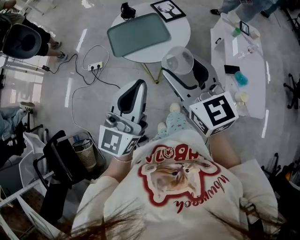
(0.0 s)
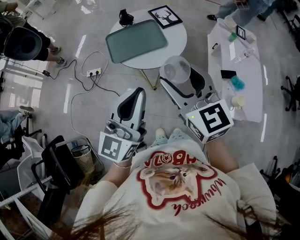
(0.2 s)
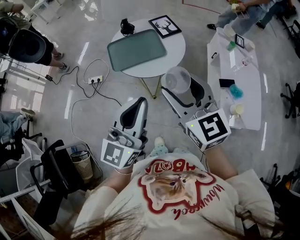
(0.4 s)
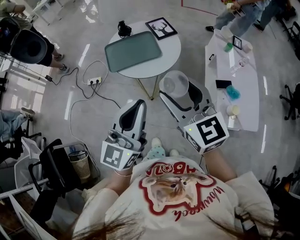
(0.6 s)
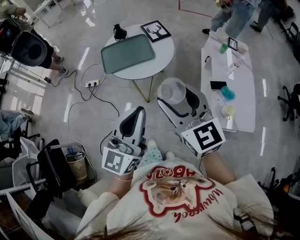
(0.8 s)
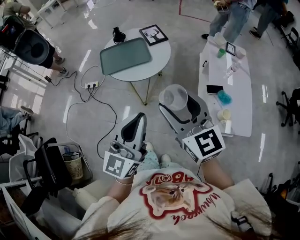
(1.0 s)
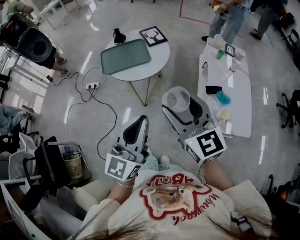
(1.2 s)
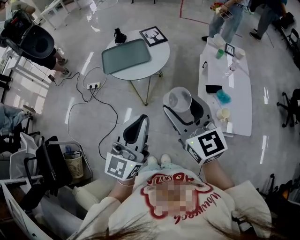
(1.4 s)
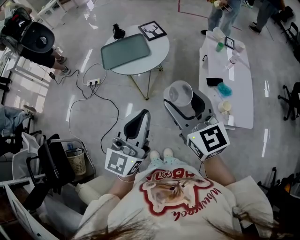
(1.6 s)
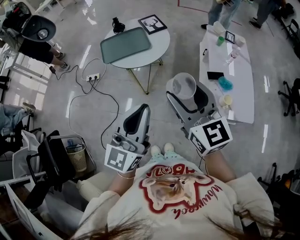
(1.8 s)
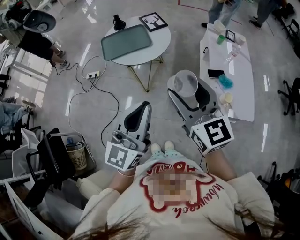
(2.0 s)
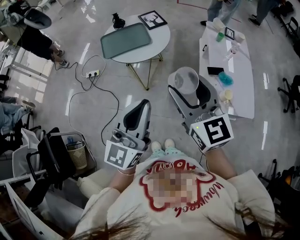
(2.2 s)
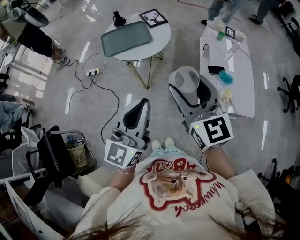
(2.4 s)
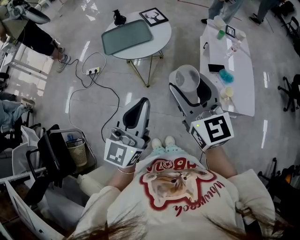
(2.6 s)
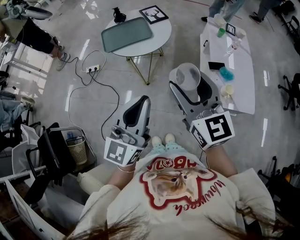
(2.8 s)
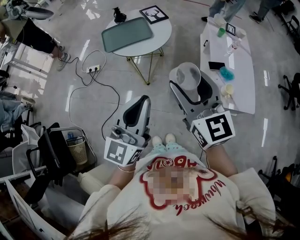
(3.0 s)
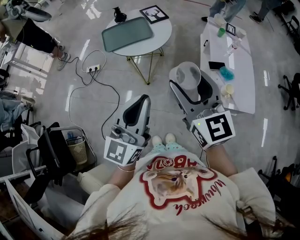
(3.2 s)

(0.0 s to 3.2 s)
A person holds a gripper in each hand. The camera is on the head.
0.0 s - 1.6 s: The two grippers go approximately 20 cm backward and to the right.
1.6 s - 3.2 s: The grippers move only a little.

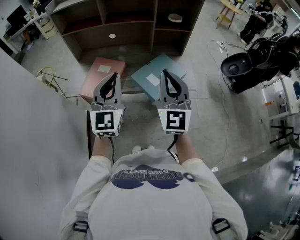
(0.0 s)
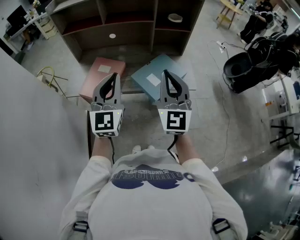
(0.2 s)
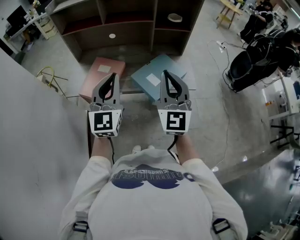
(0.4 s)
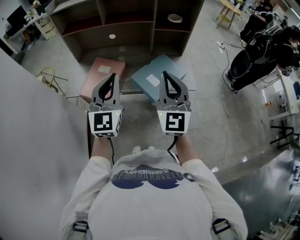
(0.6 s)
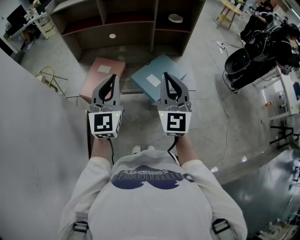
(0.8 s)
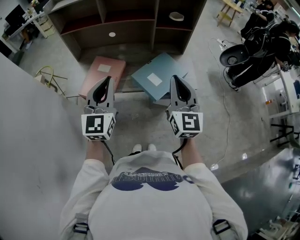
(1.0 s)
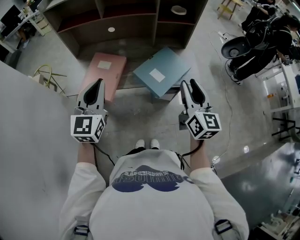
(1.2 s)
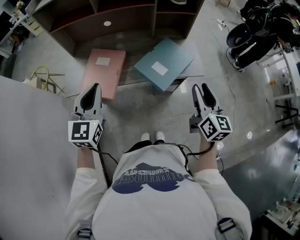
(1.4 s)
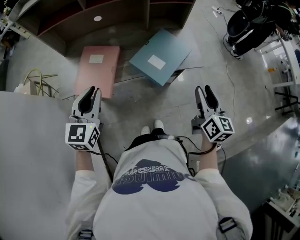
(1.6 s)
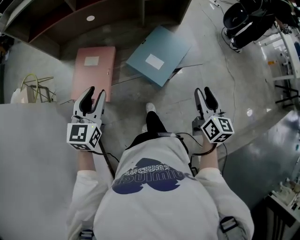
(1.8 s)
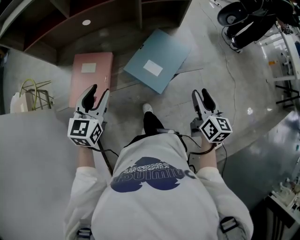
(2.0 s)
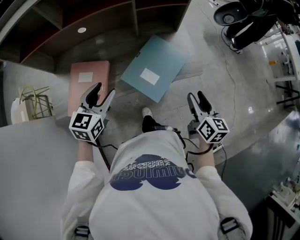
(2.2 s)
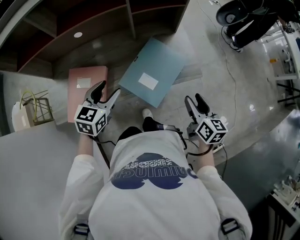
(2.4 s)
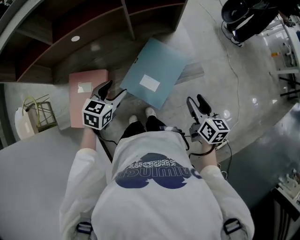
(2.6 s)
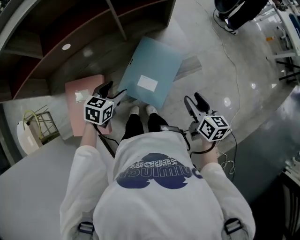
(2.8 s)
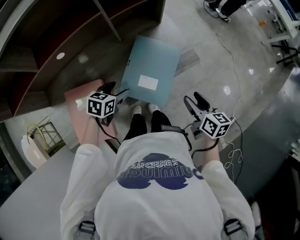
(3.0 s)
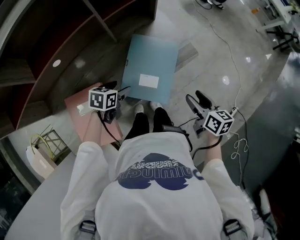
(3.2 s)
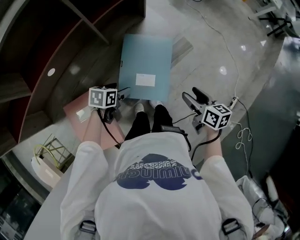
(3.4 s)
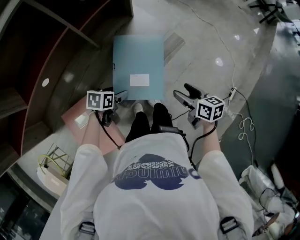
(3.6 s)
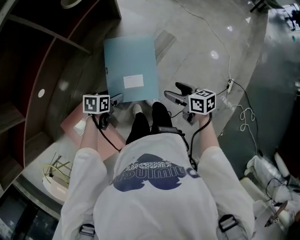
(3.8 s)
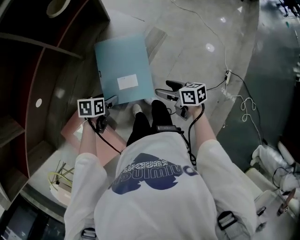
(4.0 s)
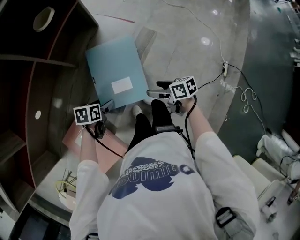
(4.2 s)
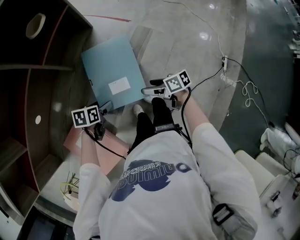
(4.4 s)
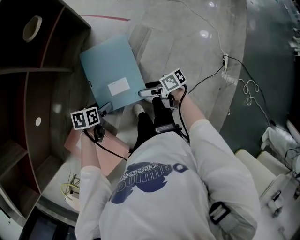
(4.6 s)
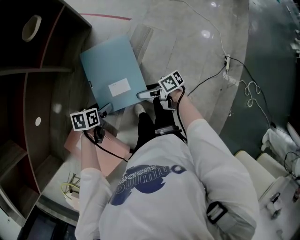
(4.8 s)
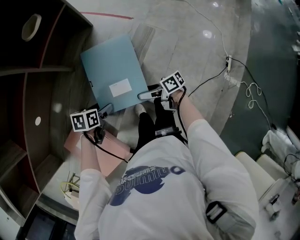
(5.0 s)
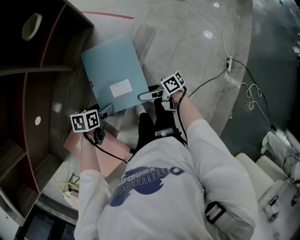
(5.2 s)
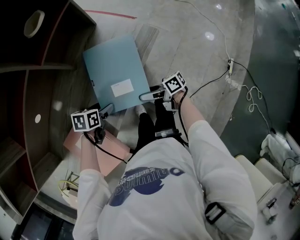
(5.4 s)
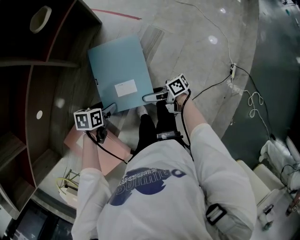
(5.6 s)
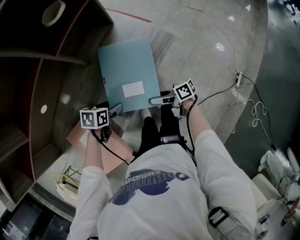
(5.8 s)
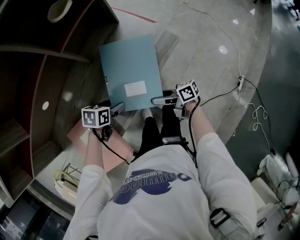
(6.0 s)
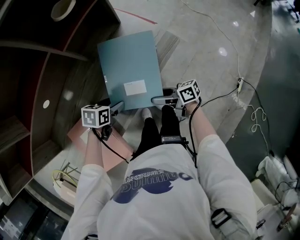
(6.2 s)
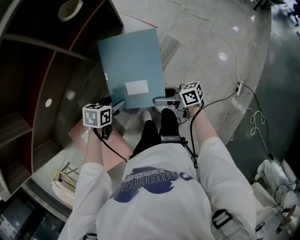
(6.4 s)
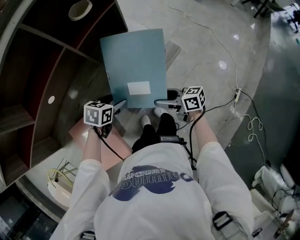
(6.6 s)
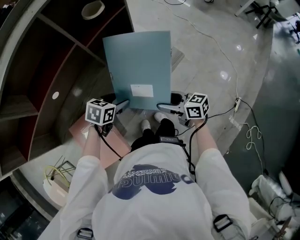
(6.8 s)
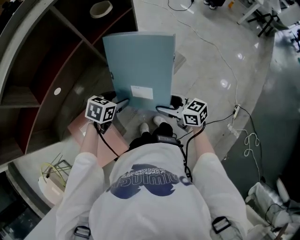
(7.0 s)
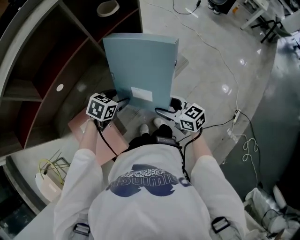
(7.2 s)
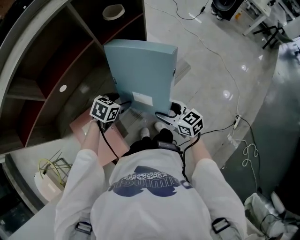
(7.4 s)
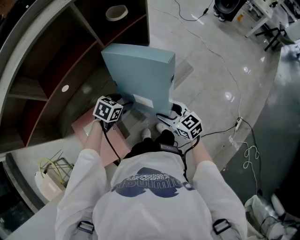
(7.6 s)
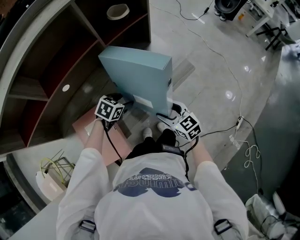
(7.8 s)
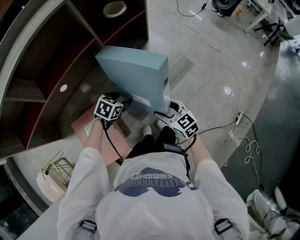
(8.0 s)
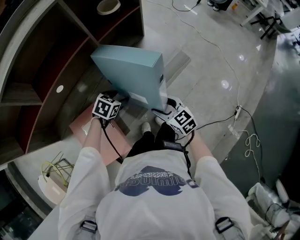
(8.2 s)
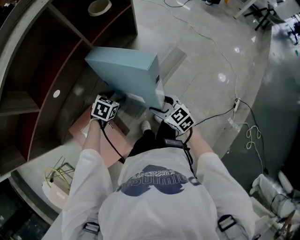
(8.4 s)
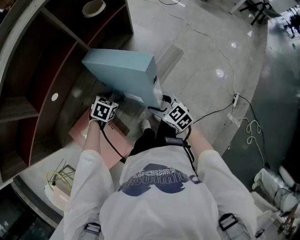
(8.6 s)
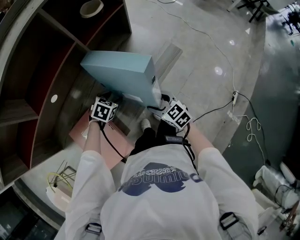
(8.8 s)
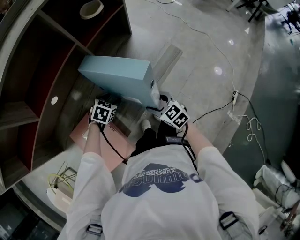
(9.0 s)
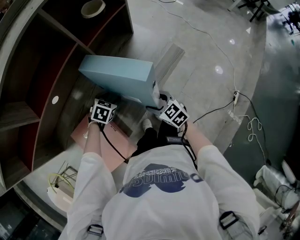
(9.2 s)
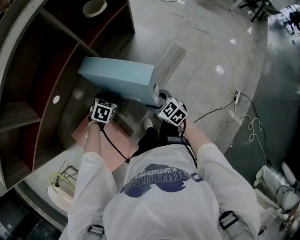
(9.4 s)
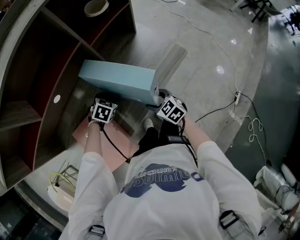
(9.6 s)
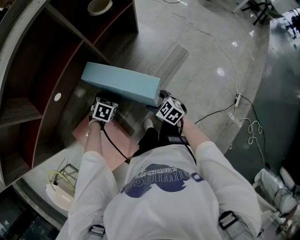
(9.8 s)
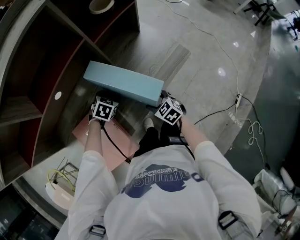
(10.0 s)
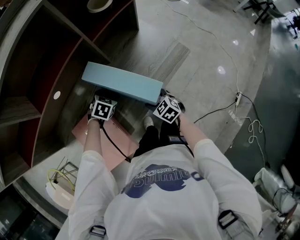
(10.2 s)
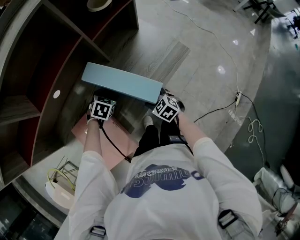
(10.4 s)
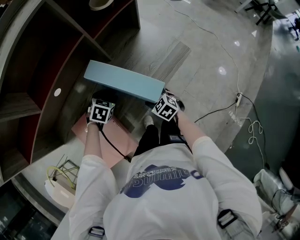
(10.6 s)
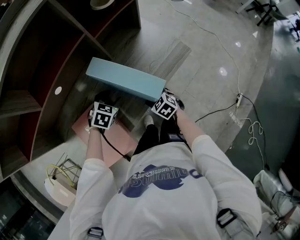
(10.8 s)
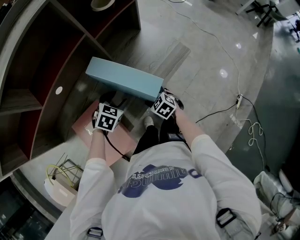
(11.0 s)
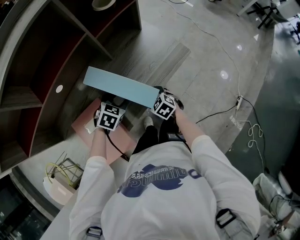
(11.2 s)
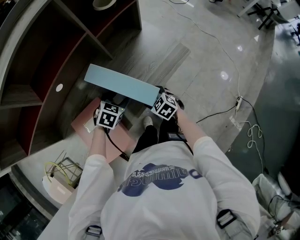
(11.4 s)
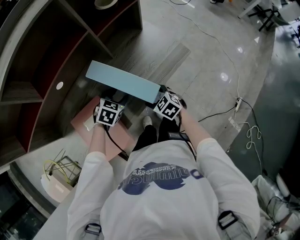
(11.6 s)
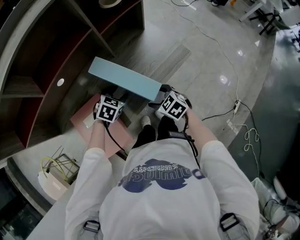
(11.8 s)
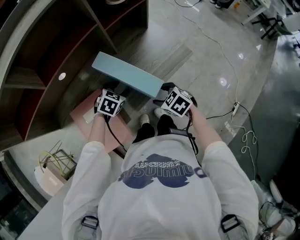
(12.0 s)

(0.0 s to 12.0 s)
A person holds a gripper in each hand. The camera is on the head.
0.0 s - 1.6 s: The left gripper heads downward and to the left, covering about 15 cm, and rotates some 30 degrees. The right gripper moves downward and to the right, about 20 cm, rotates about 50 degrees, and opens up.
1.6 s - 3.0 s: The right gripper is displaced downward by about 15 cm, and turns by roughly 20 degrees. The left gripper changes place by roughly 35 cm, tilts its fingers some 30 degrees downward, and opens its fingers.
3.0 s - 4.4 s: The left gripper is displaced downward by about 10 cm, and rotates some 20 degrees. Meanwhile the right gripper heads downward, covering some 15 cm, changes its angle by some 30 degrees, and opens up.
4.4 s - 6.0 s: The right gripper swivels roughly 20 degrees.
6.0 s - 7.6 s: The left gripper shifts some 5 cm upward, and turns by some 20 degrees; the right gripper shifts about 10 cm upward, and rotates around the line of its fingers by approximately 50 degrees, counterclockwise from behind.
7.6 s - 9.0 s: The right gripper goes roughly 5 cm downward. The left gripper changes place by some 5 cm.
9.0 s - 10.4 s: The right gripper travels downward by some 5 cm.
10.4 s - 12.0 s: The right gripper goes some 10 cm upward, while the left gripper moves upward, approximately 5 cm.

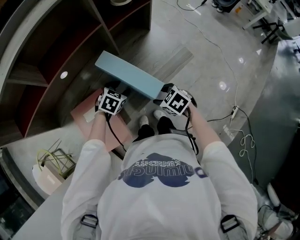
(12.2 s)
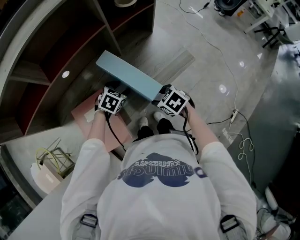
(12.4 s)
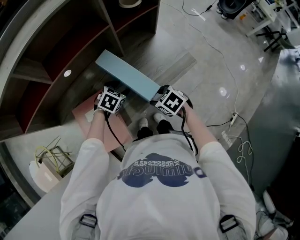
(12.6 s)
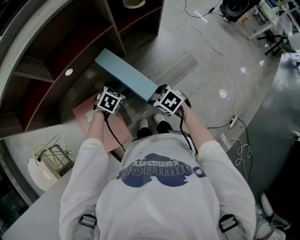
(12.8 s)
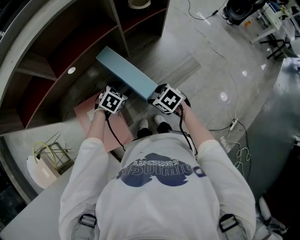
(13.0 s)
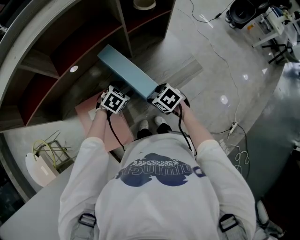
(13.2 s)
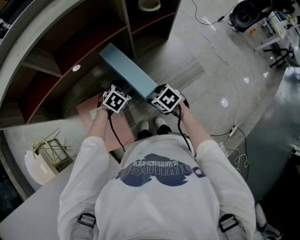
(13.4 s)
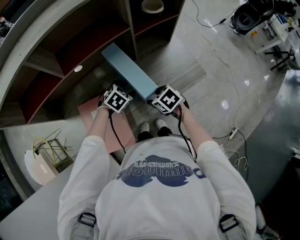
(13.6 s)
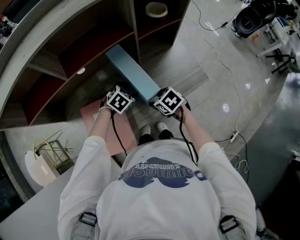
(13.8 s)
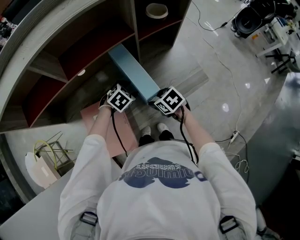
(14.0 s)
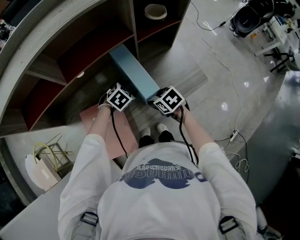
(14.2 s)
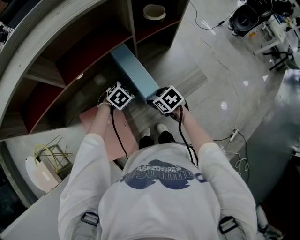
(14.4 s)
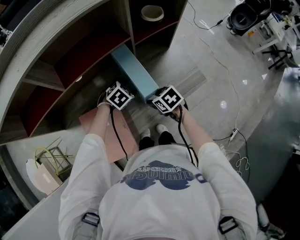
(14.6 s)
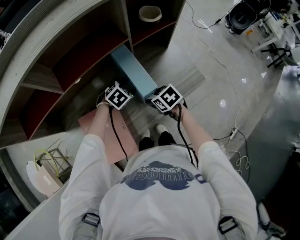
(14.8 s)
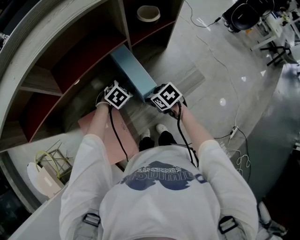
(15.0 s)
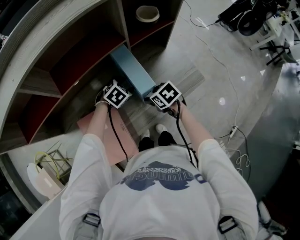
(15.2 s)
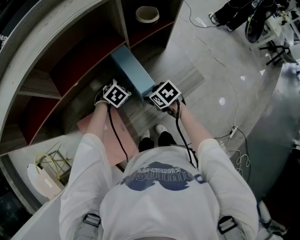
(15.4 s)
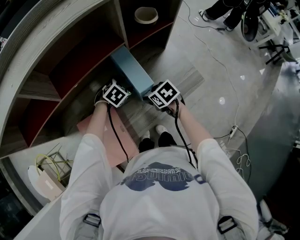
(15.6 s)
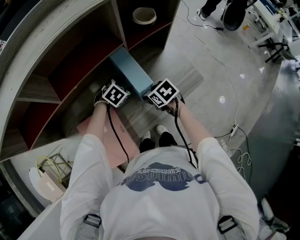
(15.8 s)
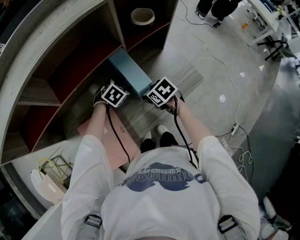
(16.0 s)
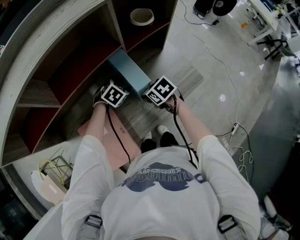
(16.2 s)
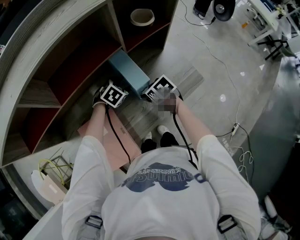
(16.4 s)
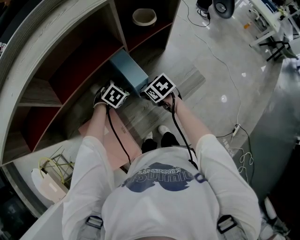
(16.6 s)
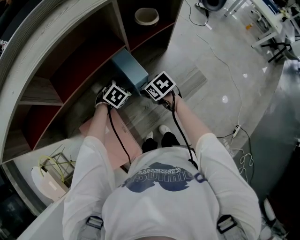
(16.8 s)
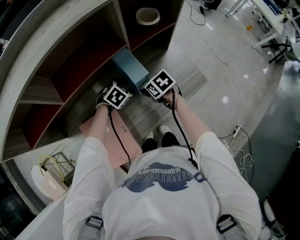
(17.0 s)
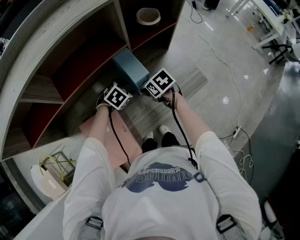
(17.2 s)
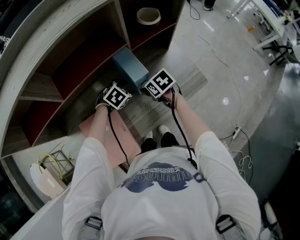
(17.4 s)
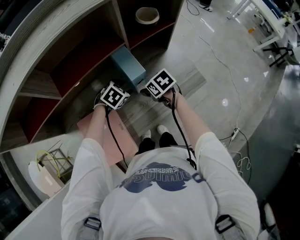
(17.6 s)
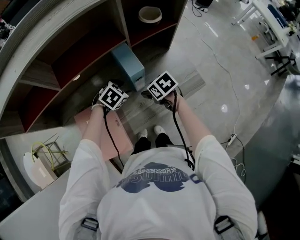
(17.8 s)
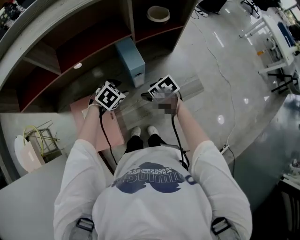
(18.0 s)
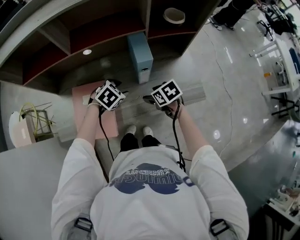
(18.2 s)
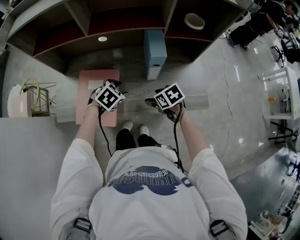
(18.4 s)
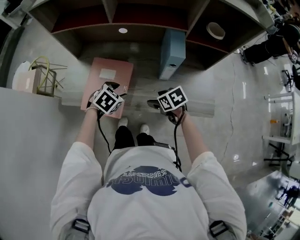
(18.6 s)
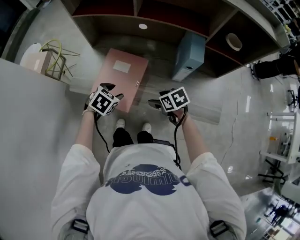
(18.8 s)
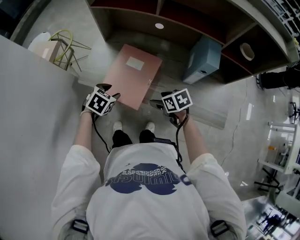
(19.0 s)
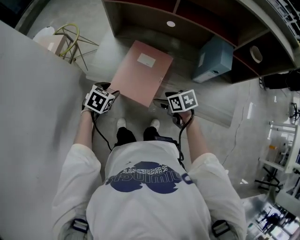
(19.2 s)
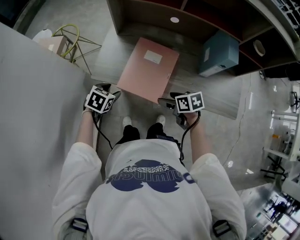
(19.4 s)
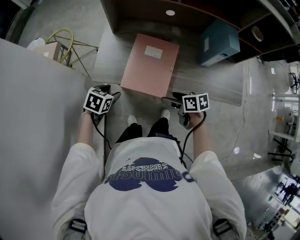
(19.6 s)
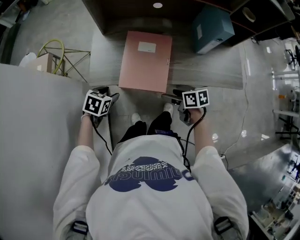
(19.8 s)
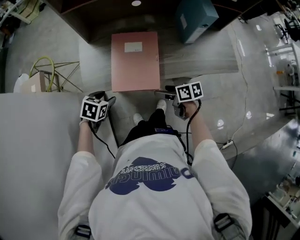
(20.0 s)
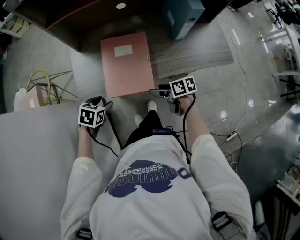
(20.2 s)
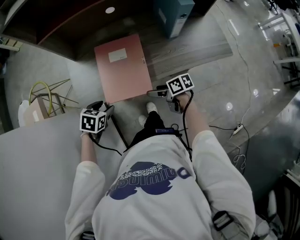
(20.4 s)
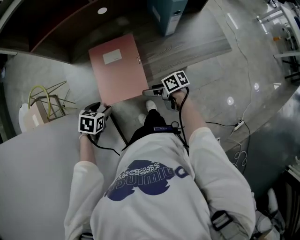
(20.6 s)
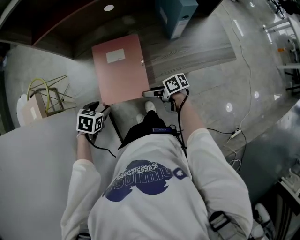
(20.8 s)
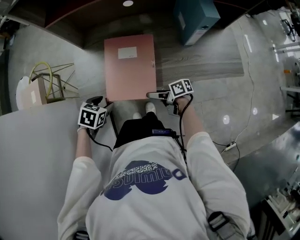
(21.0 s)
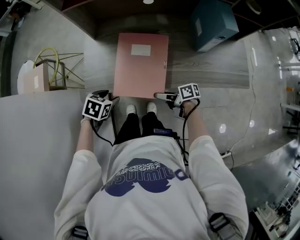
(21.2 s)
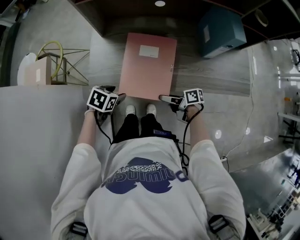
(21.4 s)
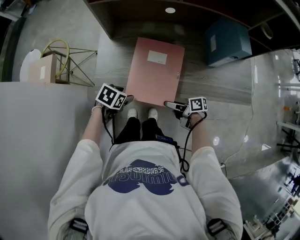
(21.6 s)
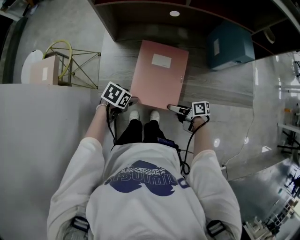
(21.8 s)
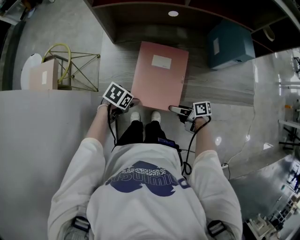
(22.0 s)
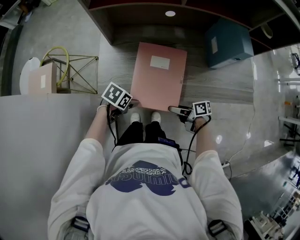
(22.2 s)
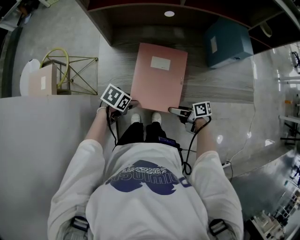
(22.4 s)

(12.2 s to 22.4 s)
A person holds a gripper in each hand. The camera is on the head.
12.2 s - 13.6 s: The right gripper is displaced forward and to the left by some 10 cm.
13.6 s - 15.2 s: The grippers both shift forward by some 5 cm.
15.2 s - 16.6 s: There are only small adjustments of the grippers.
16.6 s - 18.0 s: The left gripper heads backward, covering some 10 cm. The right gripper shifts by roughly 5 cm.
18.0 s - 19.4 s: The right gripper shifts by roughly 30 cm, and changes its angle by roughly 20 degrees. The left gripper ends up roughly 50 cm from where it was, and rotates around the line of its fingers by about 50 degrees, counterclockwise from behind.
19.4 s - 21.0 s: The right gripper goes about 10 cm downward, and turns by roughly 40 degrees.
21.0 s - 22.4 s: The left gripper ends up roughly 5 cm from where it was, and swivels some 20 degrees.
